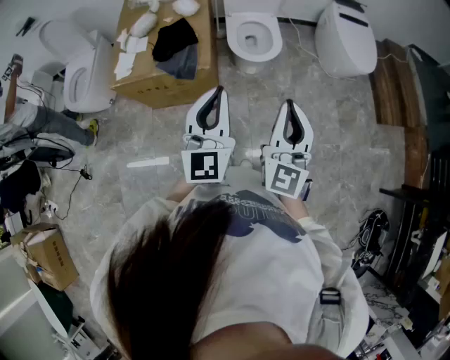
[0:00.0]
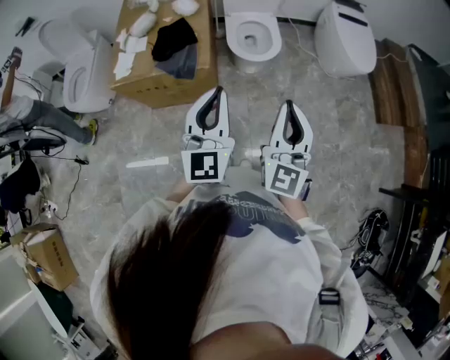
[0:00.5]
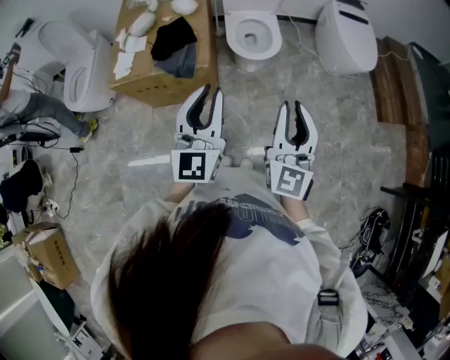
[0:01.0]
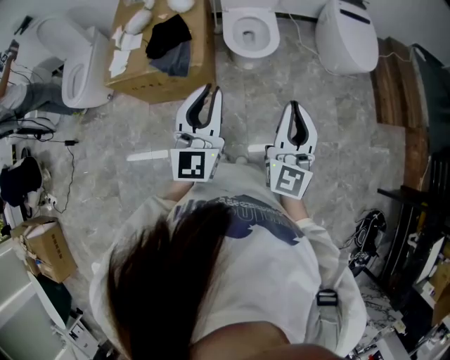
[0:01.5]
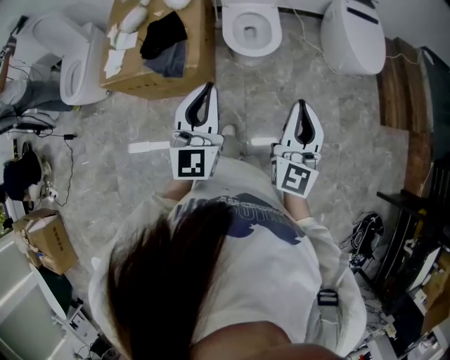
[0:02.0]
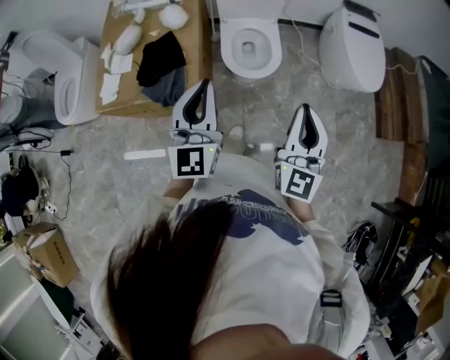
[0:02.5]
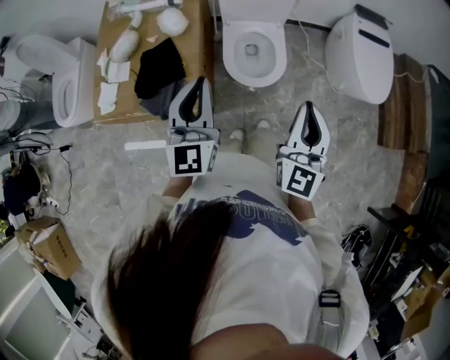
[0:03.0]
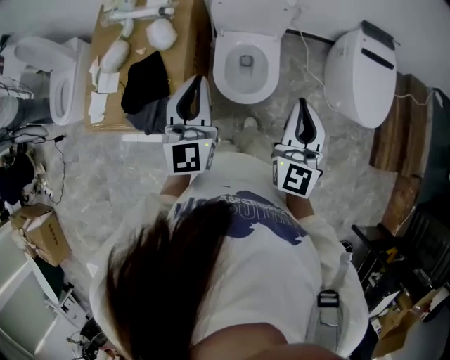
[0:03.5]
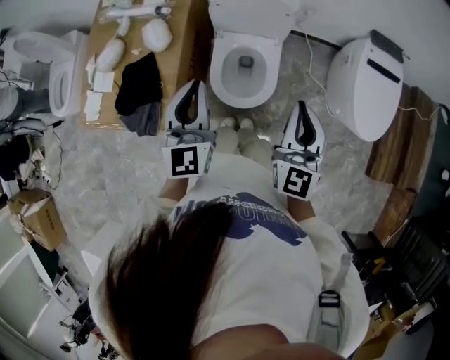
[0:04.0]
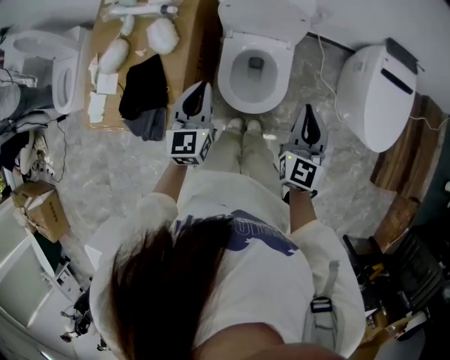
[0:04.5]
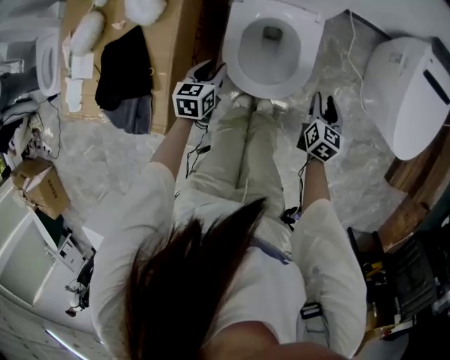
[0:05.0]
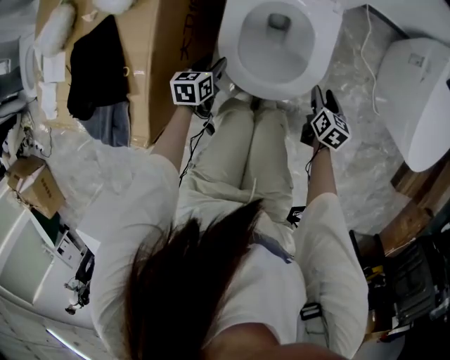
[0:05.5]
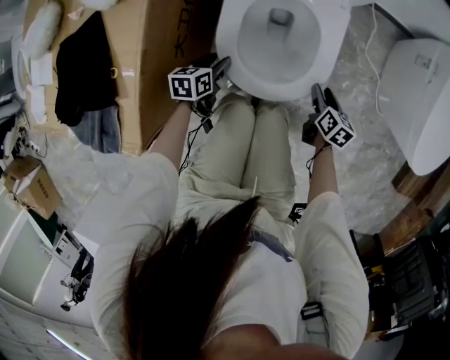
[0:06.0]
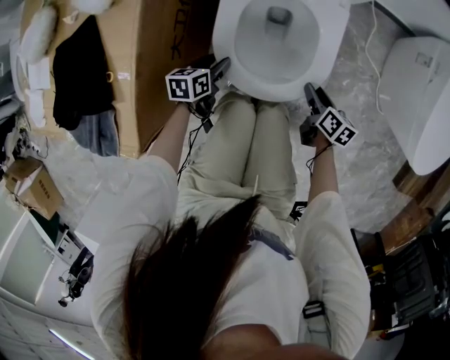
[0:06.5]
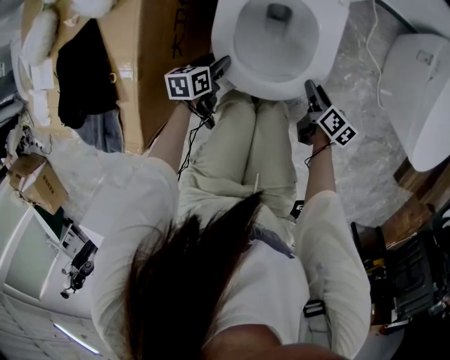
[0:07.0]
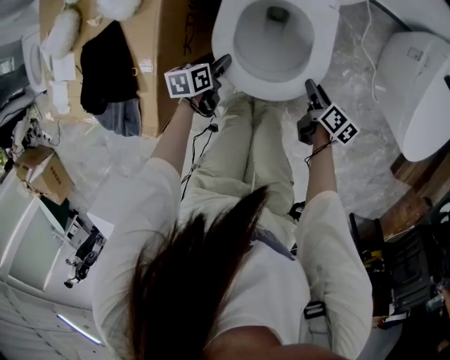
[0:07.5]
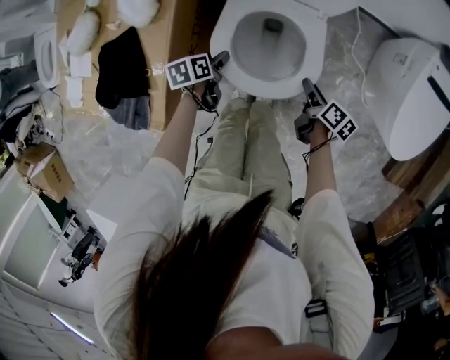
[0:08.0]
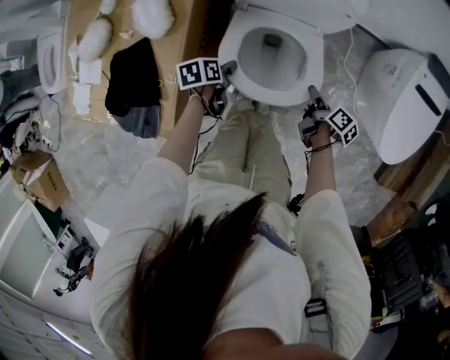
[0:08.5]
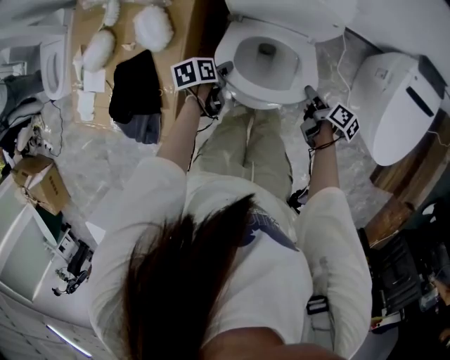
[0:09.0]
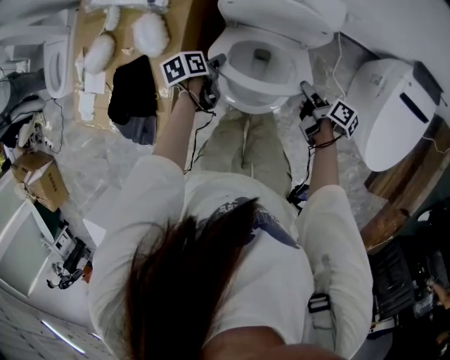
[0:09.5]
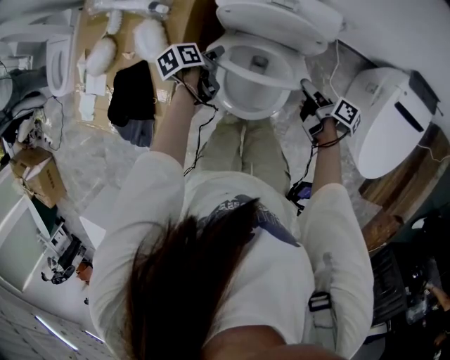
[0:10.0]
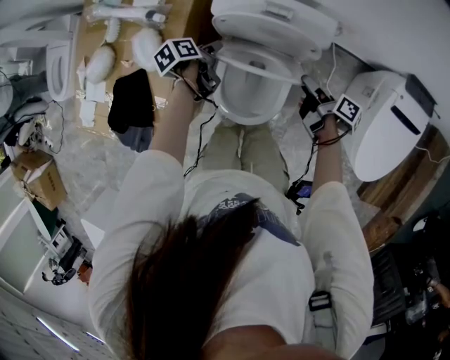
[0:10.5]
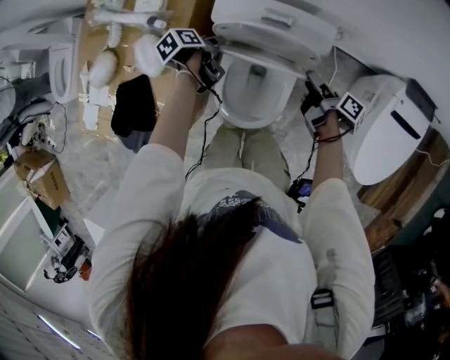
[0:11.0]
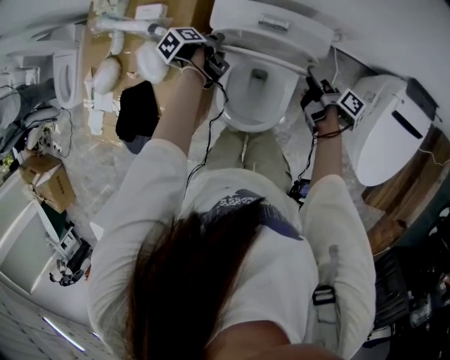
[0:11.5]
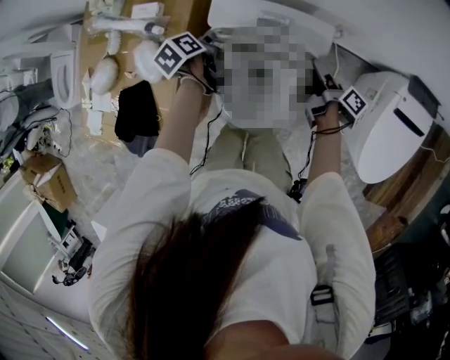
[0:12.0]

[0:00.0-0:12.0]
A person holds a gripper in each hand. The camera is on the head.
0:00.0 to 0:02.0: The right gripper travels to the right and forward by some 10 cm; the left gripper is displaced forward by about 10 cm.
0:02.0 to 0:04.0: The pair of grippers is taken forward, some 40 cm.
0:04.0 to 0:06.0: The two grippers go approximately 70 cm downward. The right gripper tilts its fingers about 50 degrees downward, and opens up, while the left gripper angles its fingers downward, by roughly 40 degrees, and opens its fingers.
0:06.0 to 0:08.0: Both grippers travel together upward, roughly 20 cm. The right gripper changes its angle by roughly 30 degrees. Meanwhile the left gripper changes its angle by roughly 20 degrees.
0:08.0 to 0:10.0: Both grippers travel together forward and upward, approximately 20 cm. The right gripper turns by roughly 20 degrees.
0:10.0 to 0:12.0: The left gripper moves forward and upward, some 15 cm, and closes its fingers; the right gripper moves forward, some 10 cm.

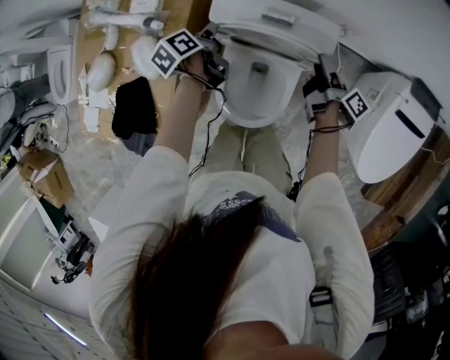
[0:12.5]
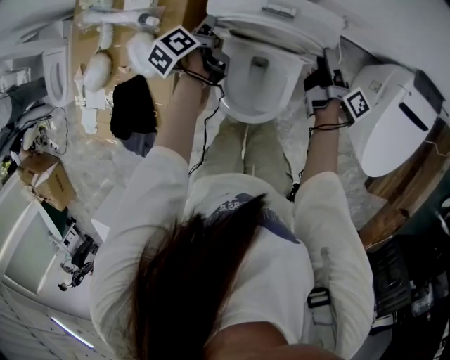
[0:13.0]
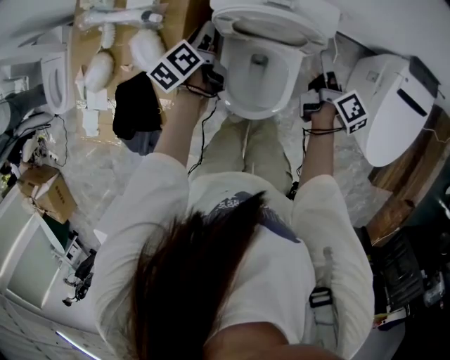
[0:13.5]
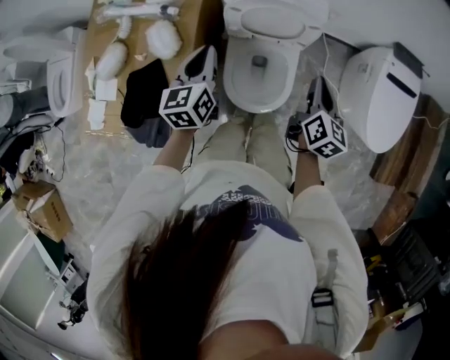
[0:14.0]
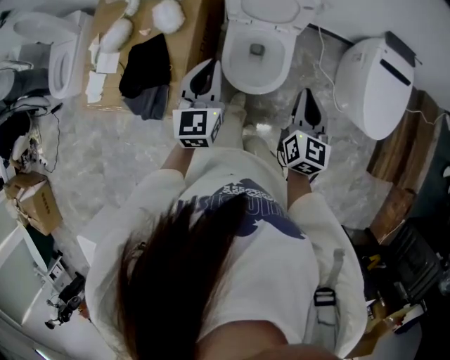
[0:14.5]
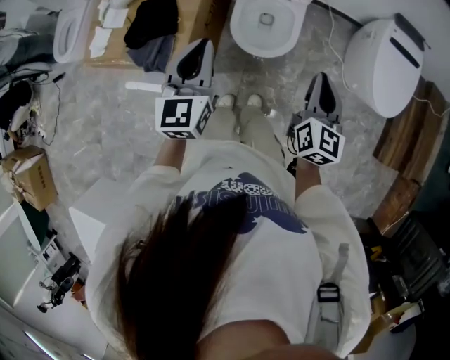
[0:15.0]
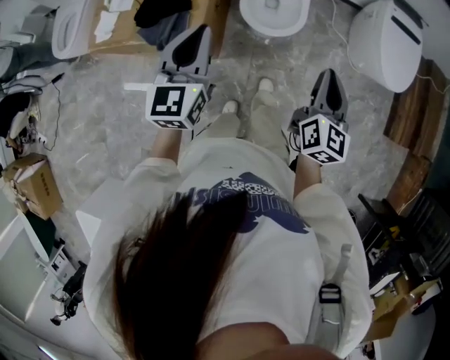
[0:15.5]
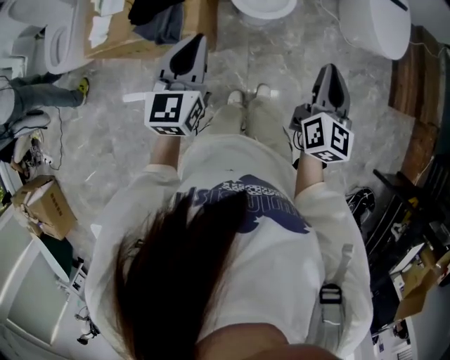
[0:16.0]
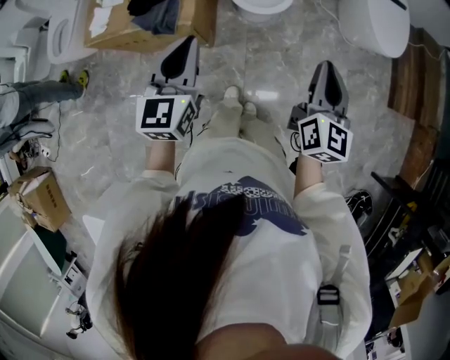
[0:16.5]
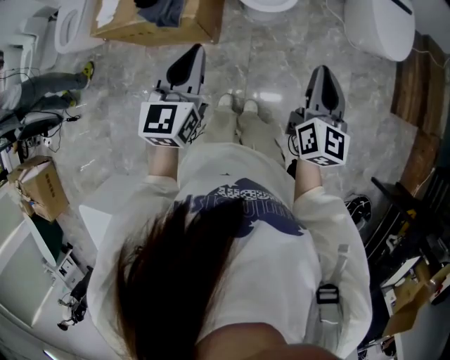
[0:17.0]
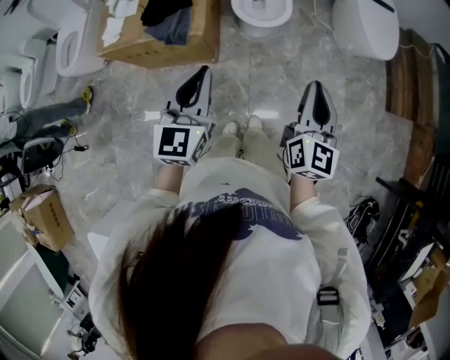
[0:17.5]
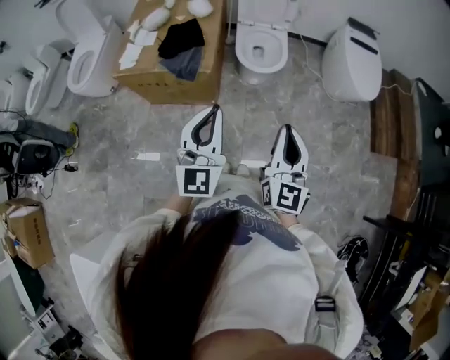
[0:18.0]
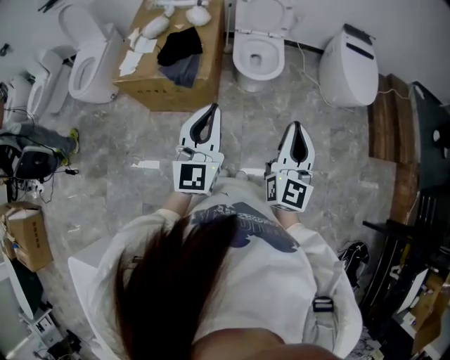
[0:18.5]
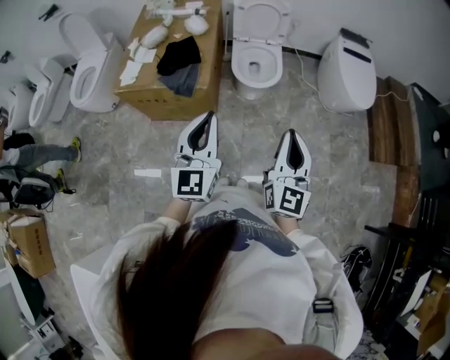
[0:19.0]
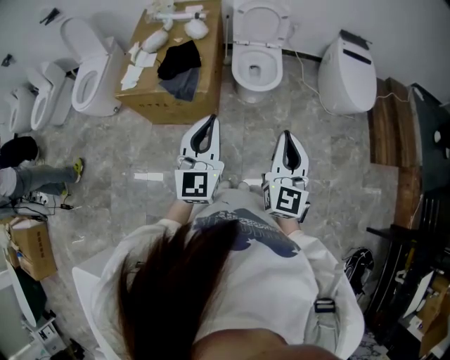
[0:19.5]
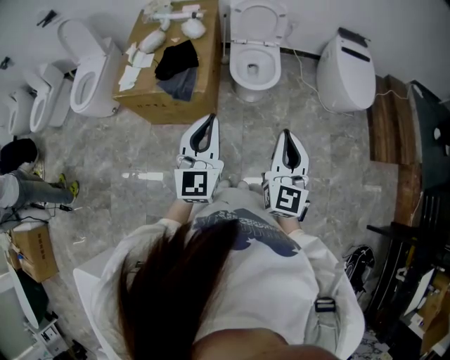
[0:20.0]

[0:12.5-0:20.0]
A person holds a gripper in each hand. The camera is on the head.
0:12.5 to 0:14.5: The two grippers go roughly 40 cm backward and upward. The right gripper rotates around the line of its fingers by some 80 degrees, counterclockwise from behind, and closes up, while the left gripper rolls clockwise, seen from behind, by roughly 60 degrees, and closes its fingers.
0:14.5 to 0:16.5: Both grippers move backward, approximately 40 cm.
0:16.5 to 0:18.0: The right gripper heads backward and to the left, covering about 20 cm. Meanwhile the left gripper goes approximately 15 cm backward and upward, and swivels approximately 20 degrees.
0:18.0 to 0:20.0: The grippers make only small movements.

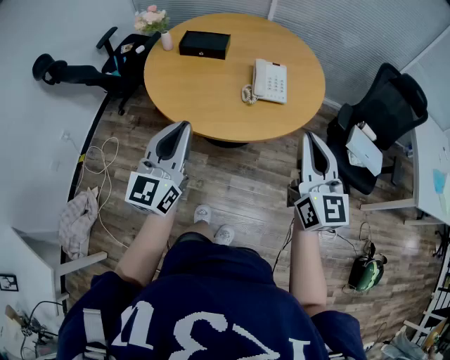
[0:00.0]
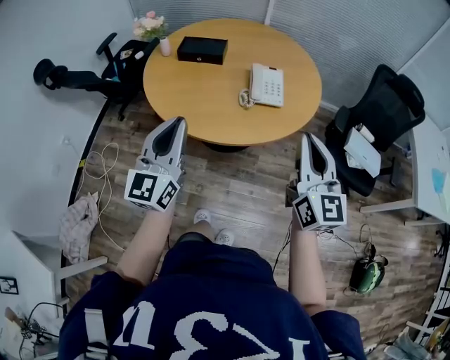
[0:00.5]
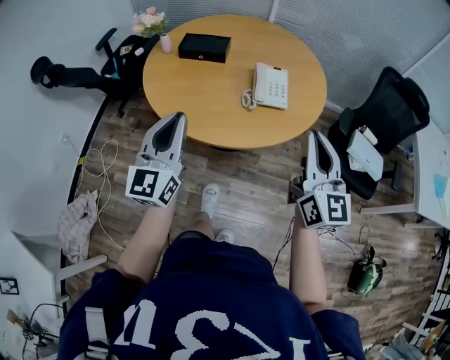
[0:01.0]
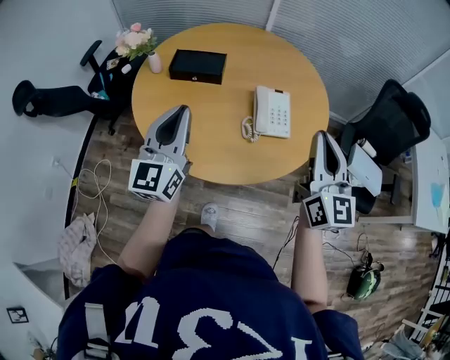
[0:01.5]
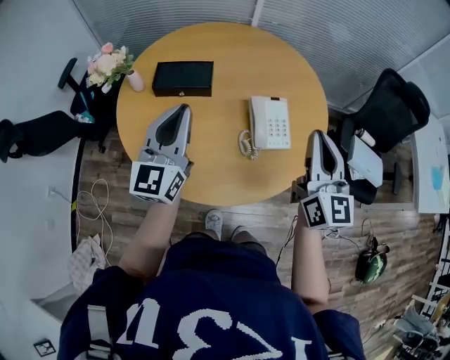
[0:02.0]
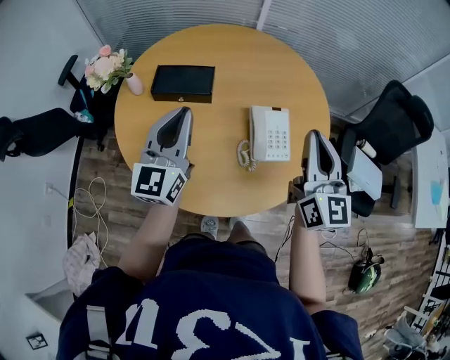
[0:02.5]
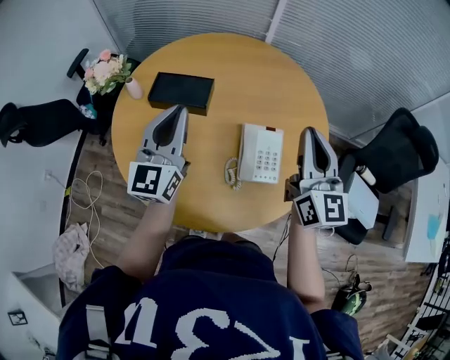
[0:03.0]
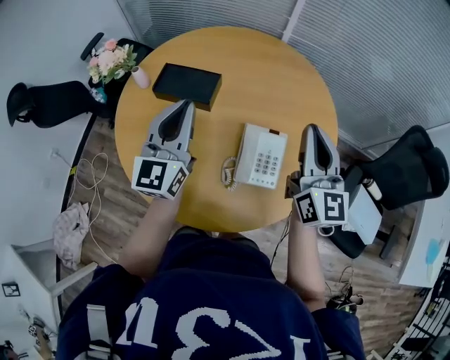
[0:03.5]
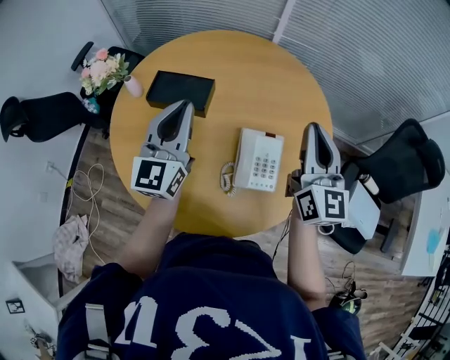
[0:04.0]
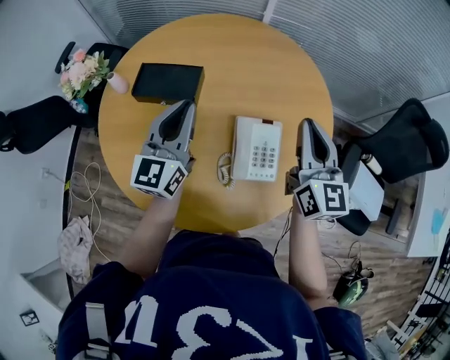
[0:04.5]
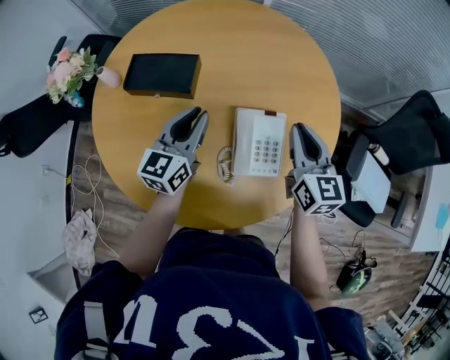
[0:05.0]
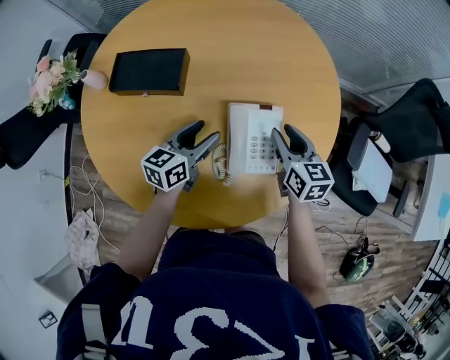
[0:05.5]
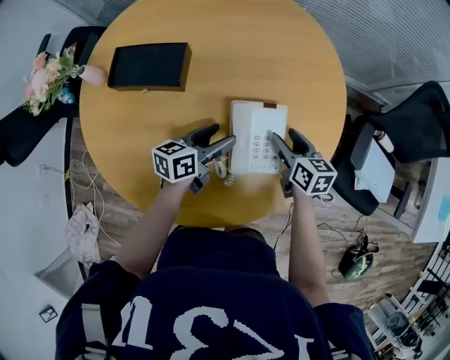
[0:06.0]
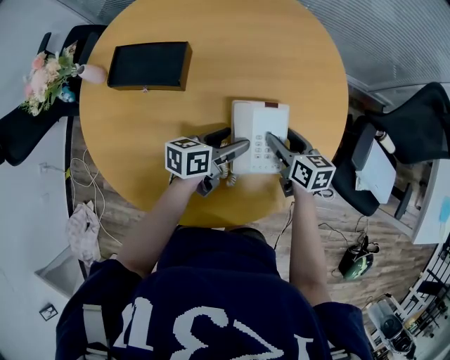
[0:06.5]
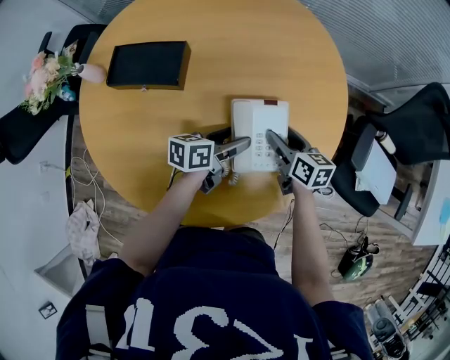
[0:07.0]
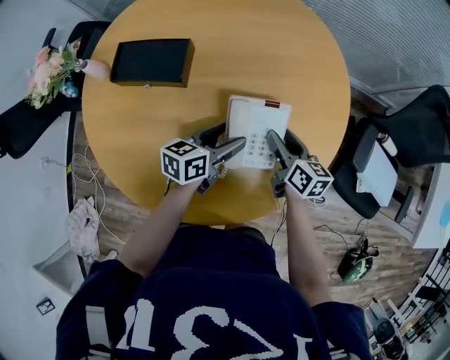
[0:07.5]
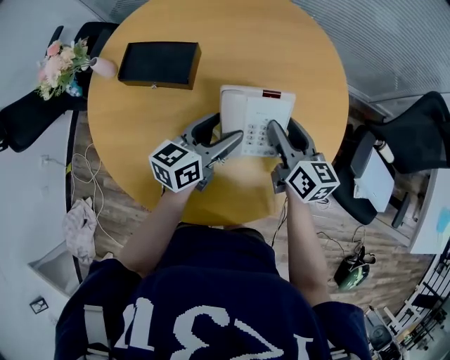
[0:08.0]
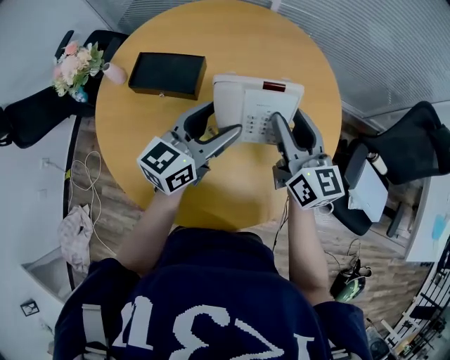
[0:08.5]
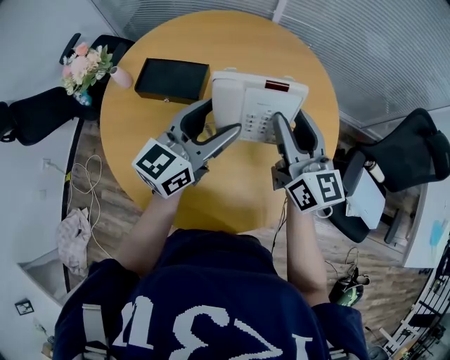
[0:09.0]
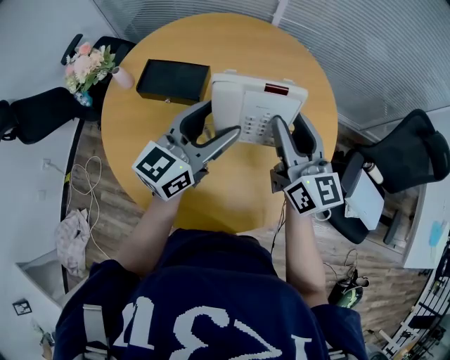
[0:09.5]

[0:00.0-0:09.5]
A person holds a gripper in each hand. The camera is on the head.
0:00.0 to 0:02.0: The grippers both shift forward by approximately 30 cm.
0:02.0 to 0:04.0: The right gripper moves forward, approximately 20 cm, while the left gripper goes roughly 15 cm forward and to the right.
0:04.0 to 0:05.5: The grippers both shift downward by roughly 25 cm. The left gripper rotates approximately 50 degrees, and opens its fingers, while the right gripper tips its fingers downward by approximately 40 degrees, and opens up.
0:05.5 to 0:07.5: The left gripper shifts some 5 cm to the right. Meanwhile the right gripper travels downward by about 5 cm.
0:07.5 to 0:09.5: Both grippers move upward, about 25 cm. The right gripper tips its fingers upward by approximately 30 degrees, while the left gripper swivels approximately 40 degrees.
